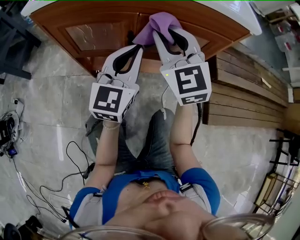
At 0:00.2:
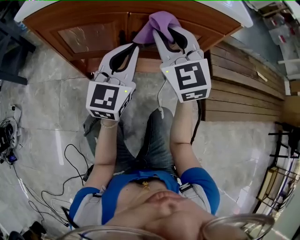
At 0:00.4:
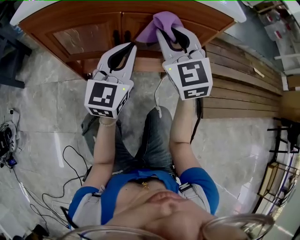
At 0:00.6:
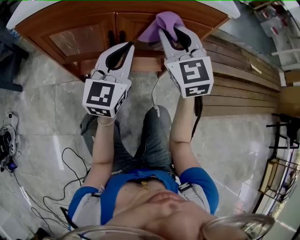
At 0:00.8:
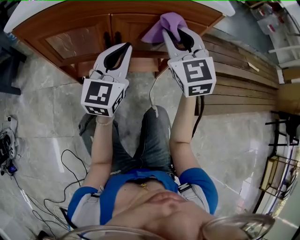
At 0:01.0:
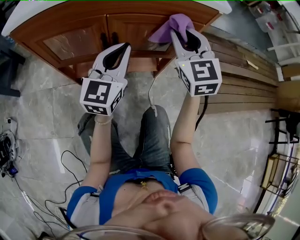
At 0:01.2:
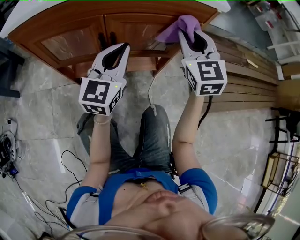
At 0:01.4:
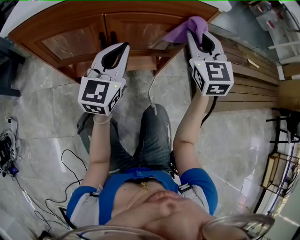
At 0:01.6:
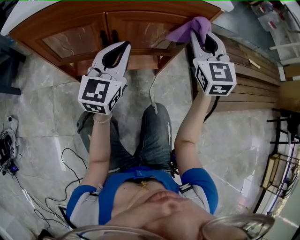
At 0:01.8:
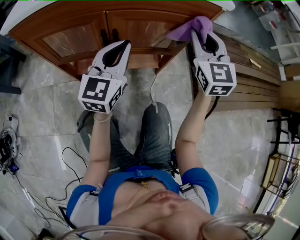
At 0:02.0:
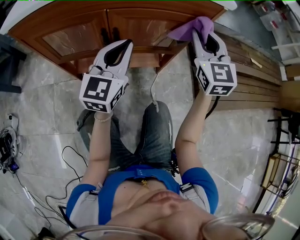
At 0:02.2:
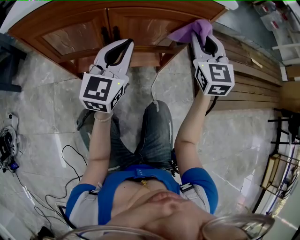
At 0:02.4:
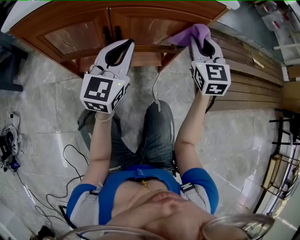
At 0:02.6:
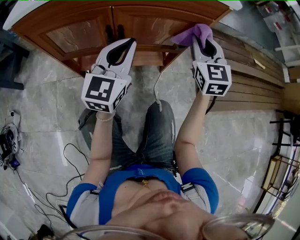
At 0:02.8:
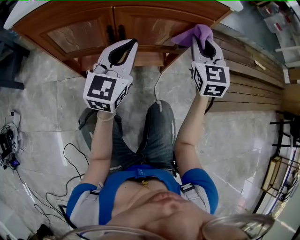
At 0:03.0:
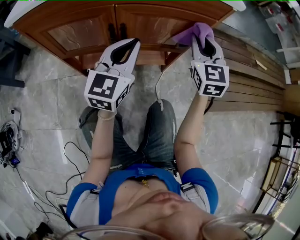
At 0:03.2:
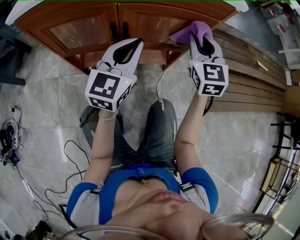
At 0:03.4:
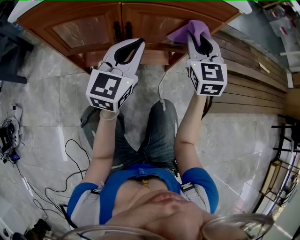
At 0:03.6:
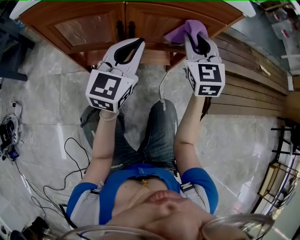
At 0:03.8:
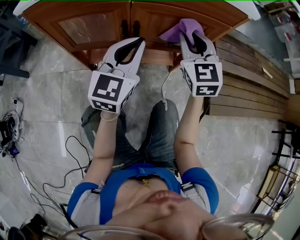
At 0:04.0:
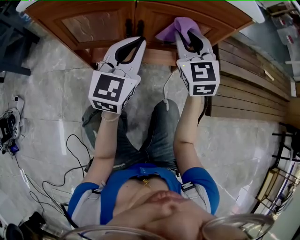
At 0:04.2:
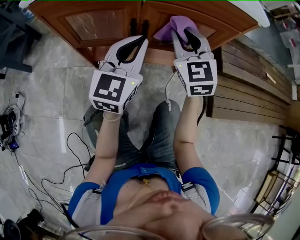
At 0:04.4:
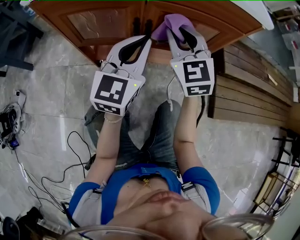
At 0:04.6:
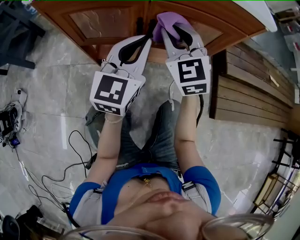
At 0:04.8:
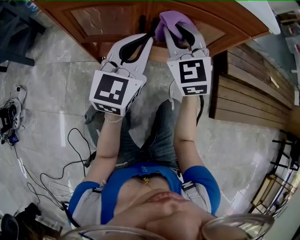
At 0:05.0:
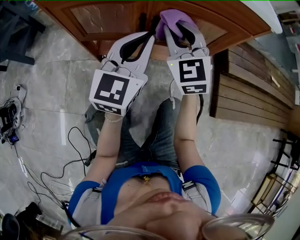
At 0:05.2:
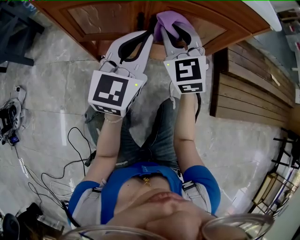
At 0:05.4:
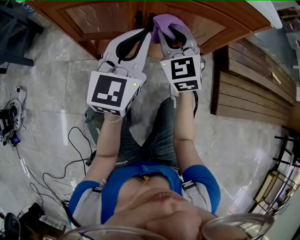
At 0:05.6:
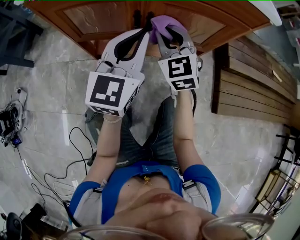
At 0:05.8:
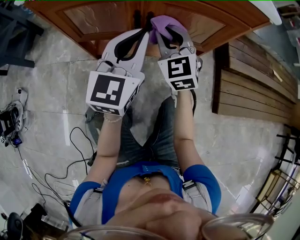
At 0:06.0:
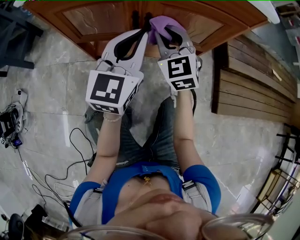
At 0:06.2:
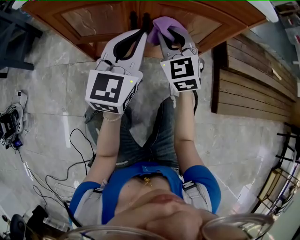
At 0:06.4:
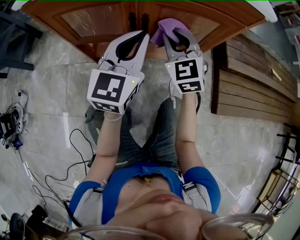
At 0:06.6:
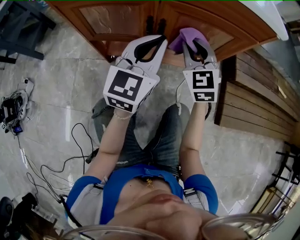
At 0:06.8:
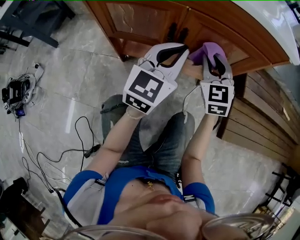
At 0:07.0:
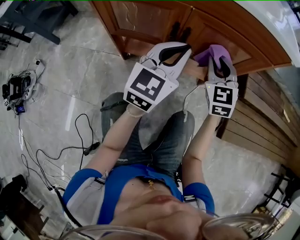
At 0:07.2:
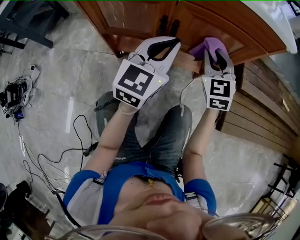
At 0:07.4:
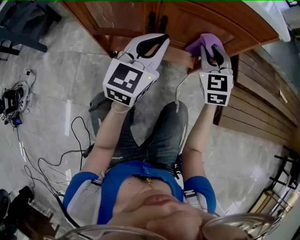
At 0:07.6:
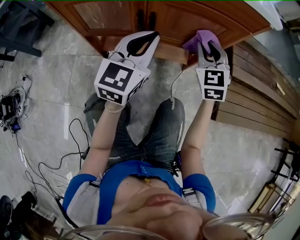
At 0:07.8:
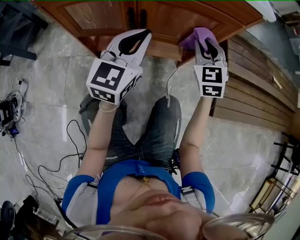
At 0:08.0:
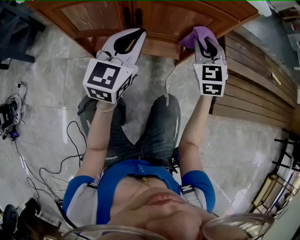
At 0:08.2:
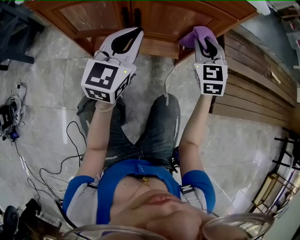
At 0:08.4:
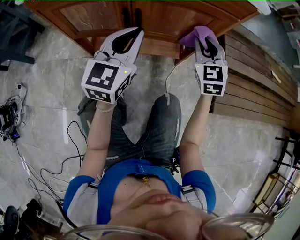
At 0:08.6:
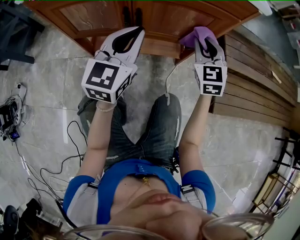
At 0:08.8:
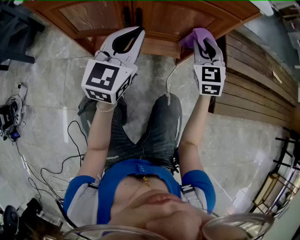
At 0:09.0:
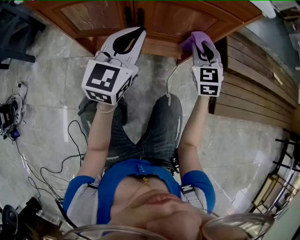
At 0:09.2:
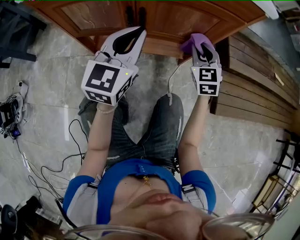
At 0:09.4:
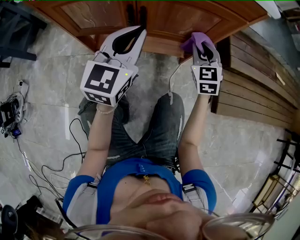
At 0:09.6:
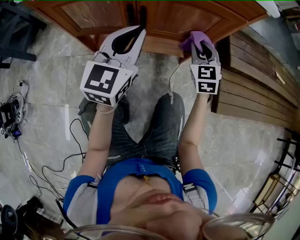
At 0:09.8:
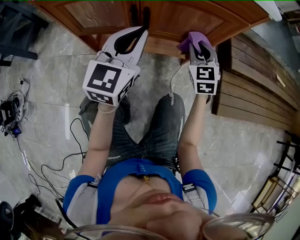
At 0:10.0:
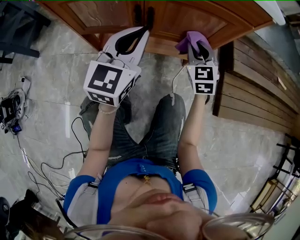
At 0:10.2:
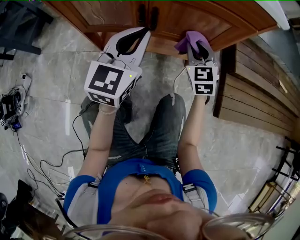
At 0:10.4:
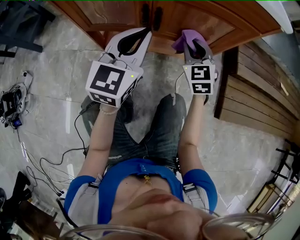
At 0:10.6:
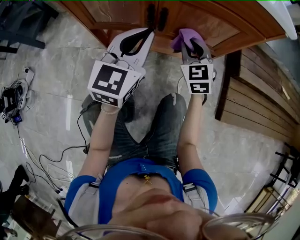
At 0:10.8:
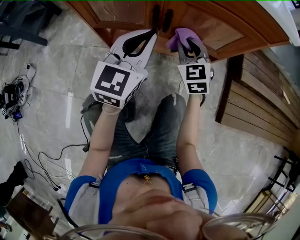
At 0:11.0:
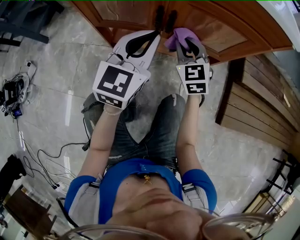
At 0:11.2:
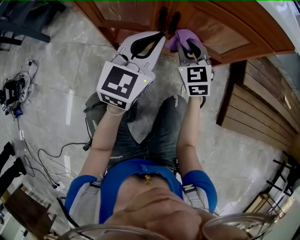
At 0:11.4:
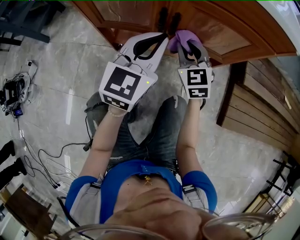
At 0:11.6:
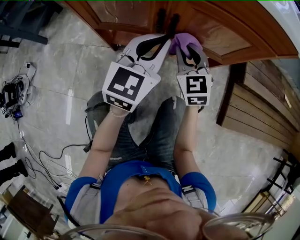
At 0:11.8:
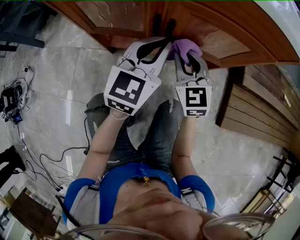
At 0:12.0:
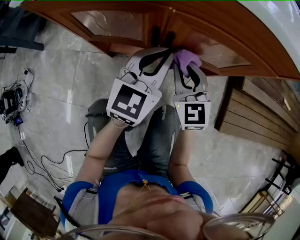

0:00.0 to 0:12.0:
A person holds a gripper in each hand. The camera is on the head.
0:00.0 to 0:01.6: The right gripper goes about 20 cm to the right.
0:01.6 to 0:03.0: The right gripper moves downward, about 5 cm.
0:03.0 to 0:04.4: The right gripper shifts approximately 15 cm to the left.
0:04.4 to 0:06.0: The right gripper shifts about 5 cm downward.
0:06.0 to 0:07.6: The right gripper is displaced to the right by roughly 15 cm.
0:07.6 to 0:09.0: The right gripper shifts by some 5 cm.
0:09.0 to 0:10.4: The right gripper travels to the left by roughly 10 cm.
0:10.4 to 0:12.0: The left gripper moves forward, about 5 cm; the right gripper travels to the left by some 5 cm.

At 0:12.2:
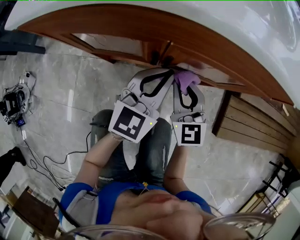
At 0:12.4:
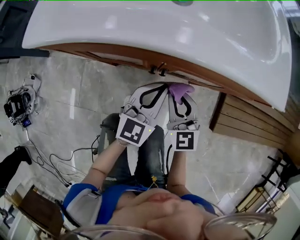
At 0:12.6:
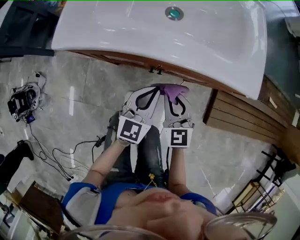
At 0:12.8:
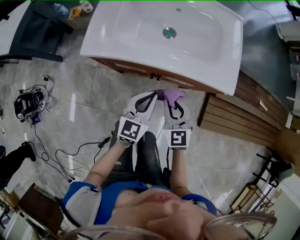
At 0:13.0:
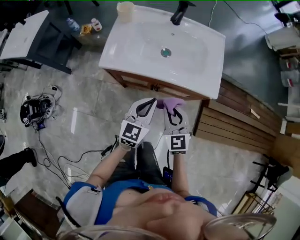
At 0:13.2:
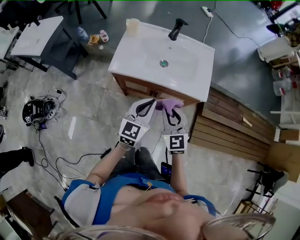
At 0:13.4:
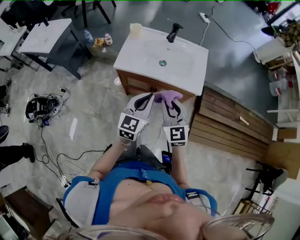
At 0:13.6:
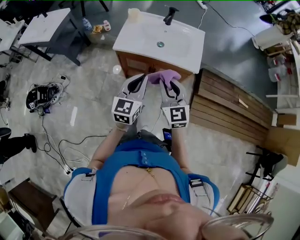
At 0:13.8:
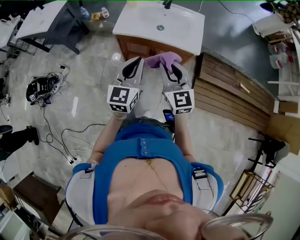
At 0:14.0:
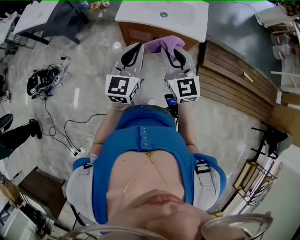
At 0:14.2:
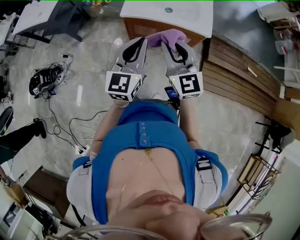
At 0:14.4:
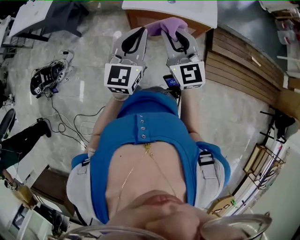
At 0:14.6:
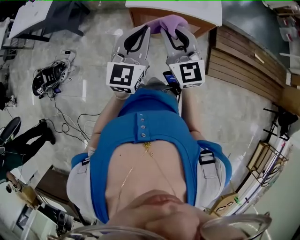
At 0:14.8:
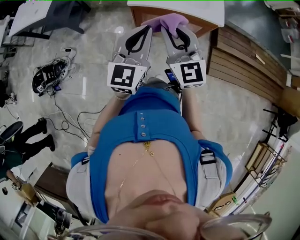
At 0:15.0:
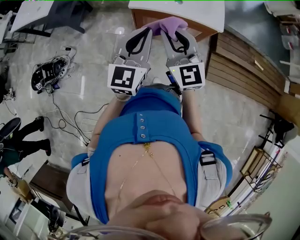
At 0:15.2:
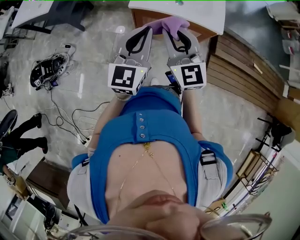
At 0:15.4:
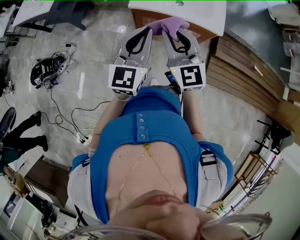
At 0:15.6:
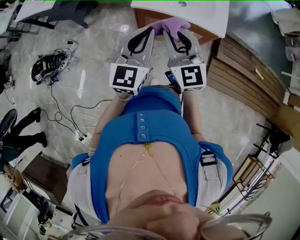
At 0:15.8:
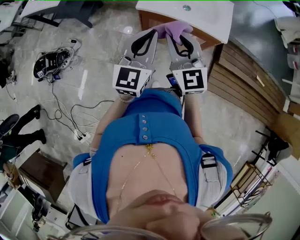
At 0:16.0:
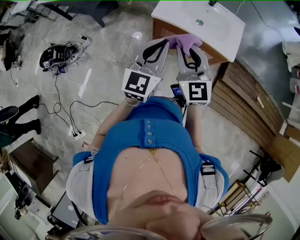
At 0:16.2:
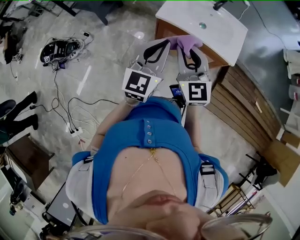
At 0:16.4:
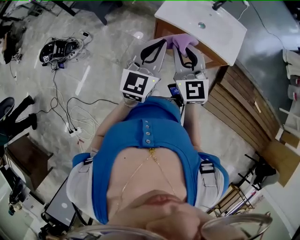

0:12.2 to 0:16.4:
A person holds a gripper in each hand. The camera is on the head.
0:12.2 to 0:13.6: The grippers both shift upward by some 60 cm. The left gripper rotates about 20 degrees.
0:13.6 to 0:15.0: The left gripper shifts some 15 cm to the left and upward; the right gripper is displaced to the left by roughly 15 cm.
0:15.0 to 0:16.4: The grippers make only small movements.

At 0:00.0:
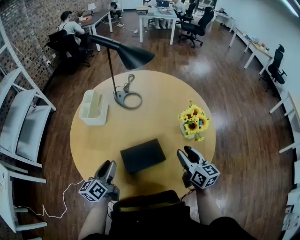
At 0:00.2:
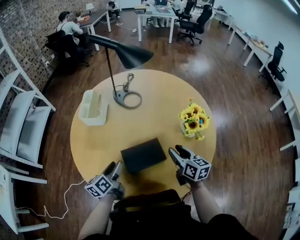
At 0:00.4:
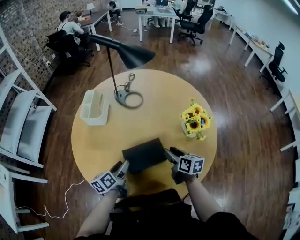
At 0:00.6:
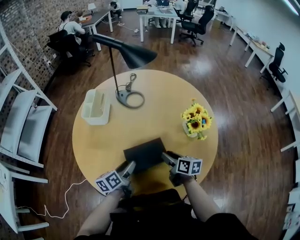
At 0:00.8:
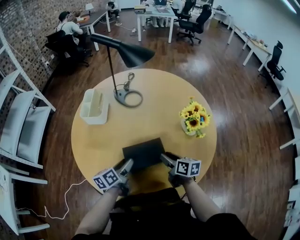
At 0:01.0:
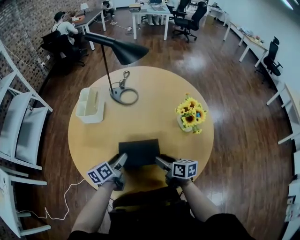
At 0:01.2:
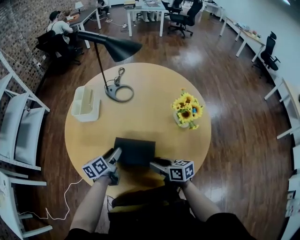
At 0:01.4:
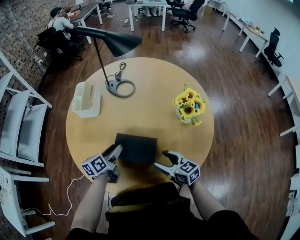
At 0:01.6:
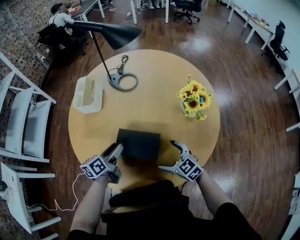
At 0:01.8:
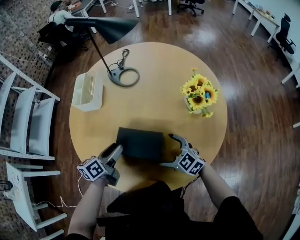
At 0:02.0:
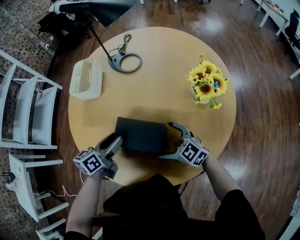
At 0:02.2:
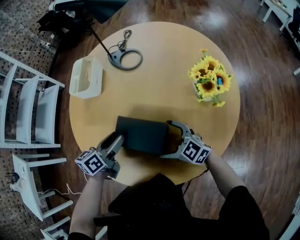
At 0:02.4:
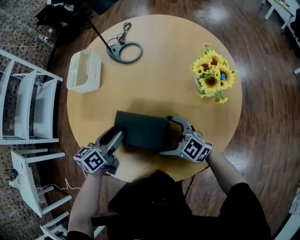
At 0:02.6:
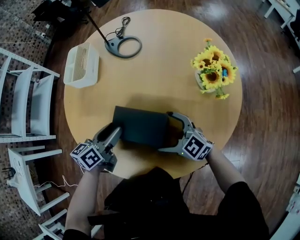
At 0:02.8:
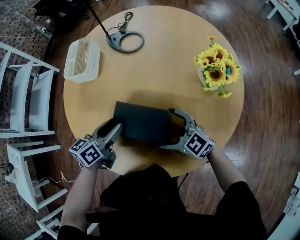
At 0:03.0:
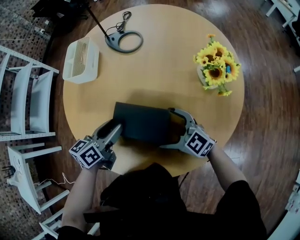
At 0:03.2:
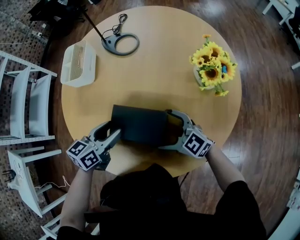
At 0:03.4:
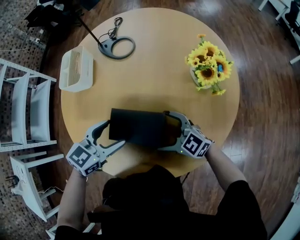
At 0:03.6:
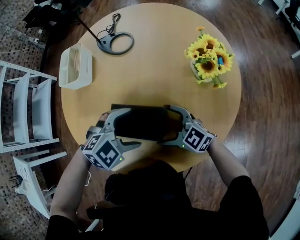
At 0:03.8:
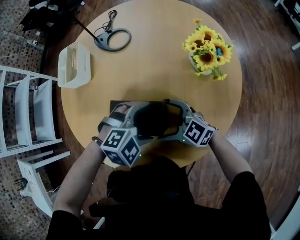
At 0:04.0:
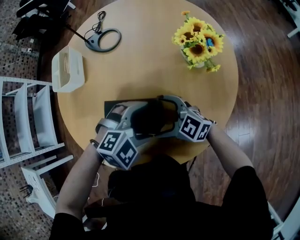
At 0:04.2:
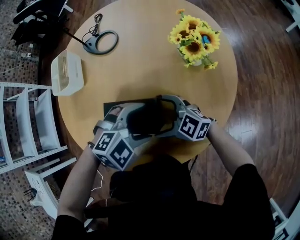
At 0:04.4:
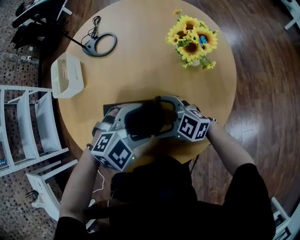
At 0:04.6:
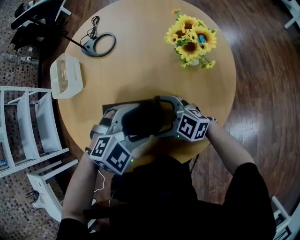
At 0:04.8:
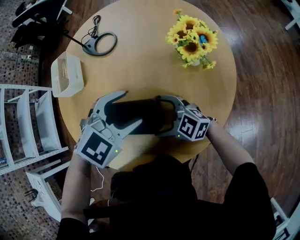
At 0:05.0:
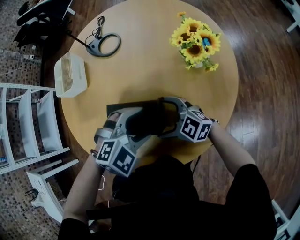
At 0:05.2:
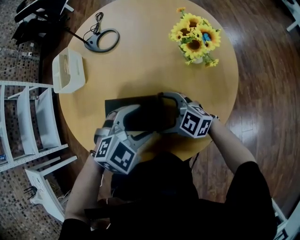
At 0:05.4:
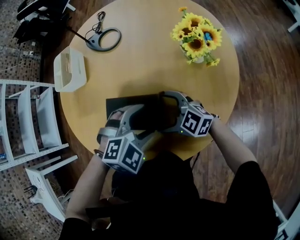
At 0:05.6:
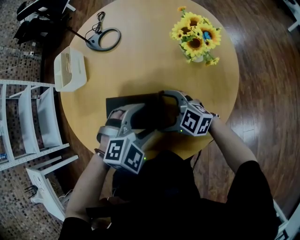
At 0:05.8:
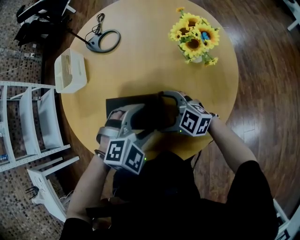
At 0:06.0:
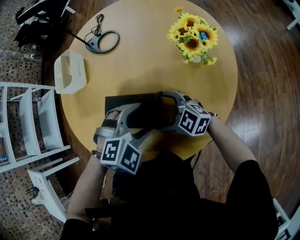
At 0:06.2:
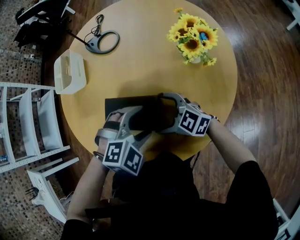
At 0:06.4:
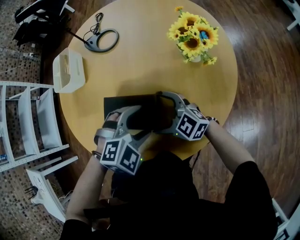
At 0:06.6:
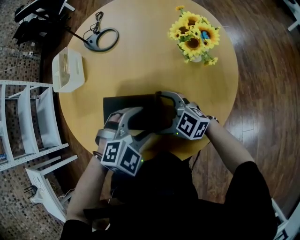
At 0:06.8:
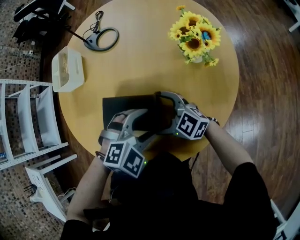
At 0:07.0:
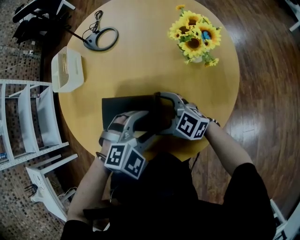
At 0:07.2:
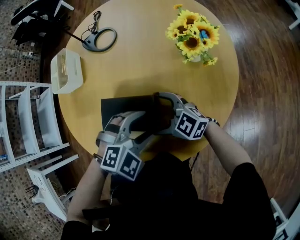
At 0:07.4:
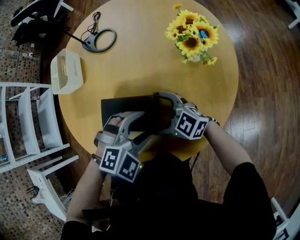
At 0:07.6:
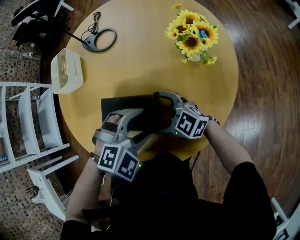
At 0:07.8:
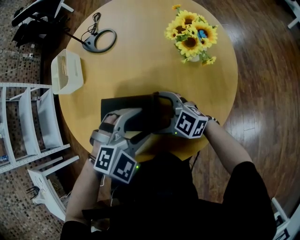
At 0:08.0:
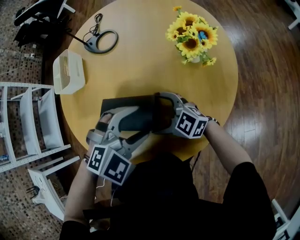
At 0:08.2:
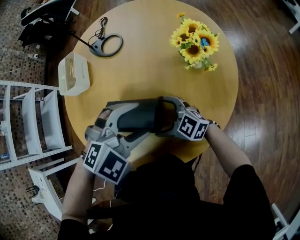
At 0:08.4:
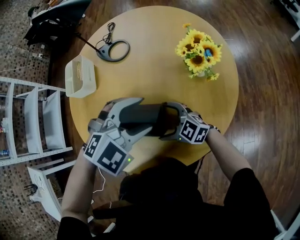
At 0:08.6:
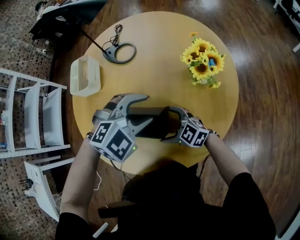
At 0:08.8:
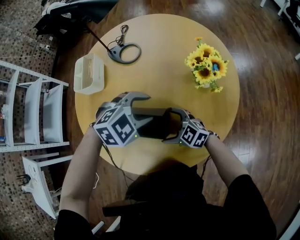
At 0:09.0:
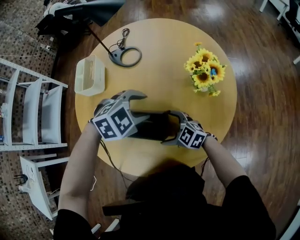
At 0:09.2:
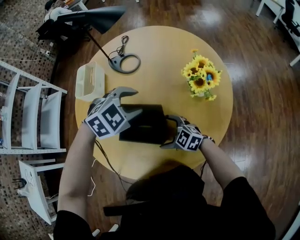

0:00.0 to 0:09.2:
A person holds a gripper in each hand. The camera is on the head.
0:00.0 to 0:01.6: The right gripper shifts some 15 cm downward, to the left and backward, rotates approximately 40 degrees, and opens, while the left gripper moves about 5 cm.
0:01.6 to 0:03.0: The grippers move only a little.
0:03.0 to 0:04.6: The left gripper ends up roughly 20 cm from where it was, twists roughly 80 degrees clockwise, seen from behind, and opens up.
0:04.6 to 0:06.2: The left gripper goes upward and returns, about 5 cm each way.
0:06.2 to 0:07.6: The grippers make only small movements.
0:07.6 to 0:09.2: The left gripper moves roughly 20 cm.
